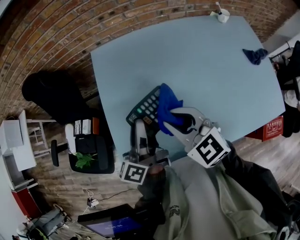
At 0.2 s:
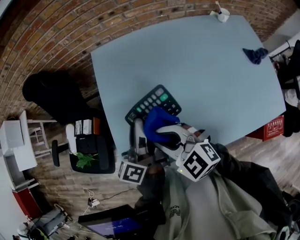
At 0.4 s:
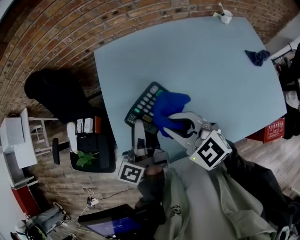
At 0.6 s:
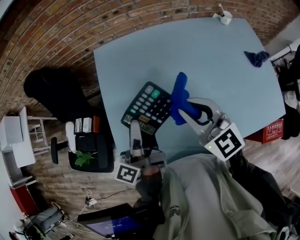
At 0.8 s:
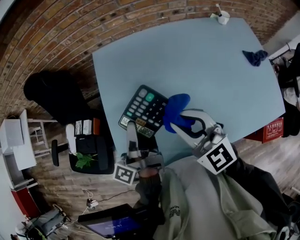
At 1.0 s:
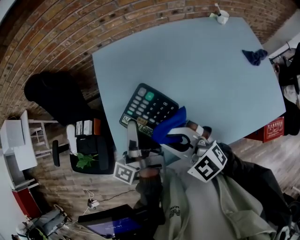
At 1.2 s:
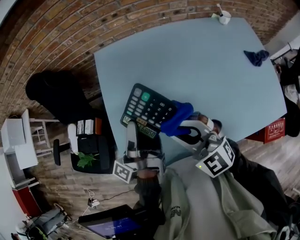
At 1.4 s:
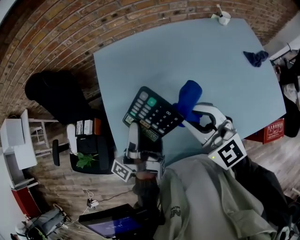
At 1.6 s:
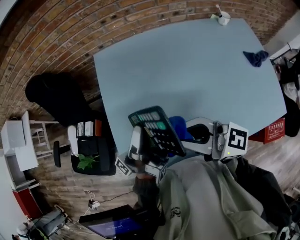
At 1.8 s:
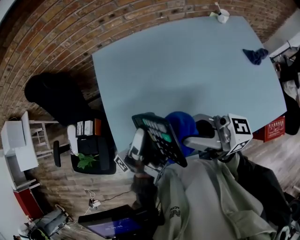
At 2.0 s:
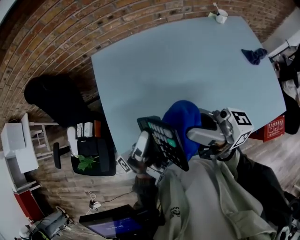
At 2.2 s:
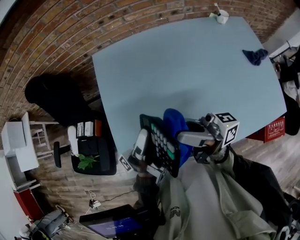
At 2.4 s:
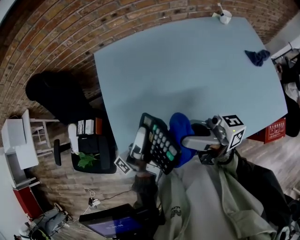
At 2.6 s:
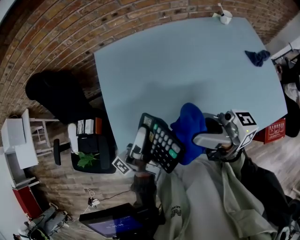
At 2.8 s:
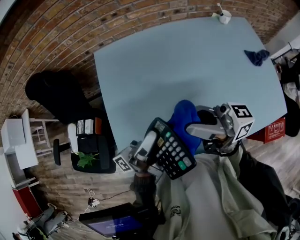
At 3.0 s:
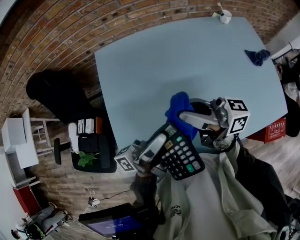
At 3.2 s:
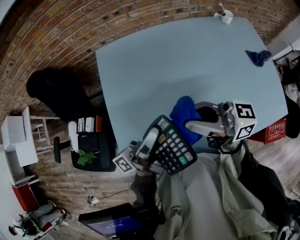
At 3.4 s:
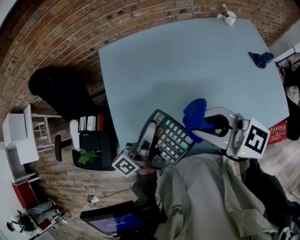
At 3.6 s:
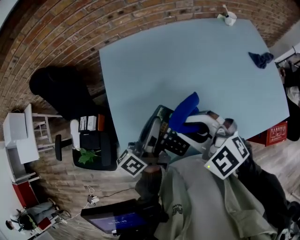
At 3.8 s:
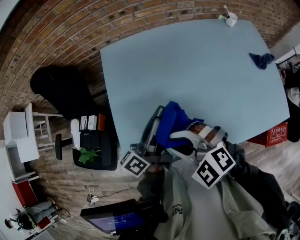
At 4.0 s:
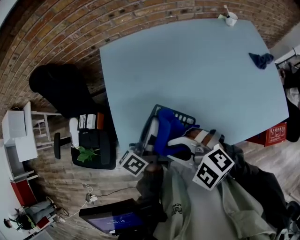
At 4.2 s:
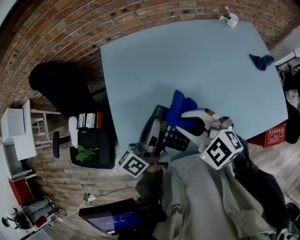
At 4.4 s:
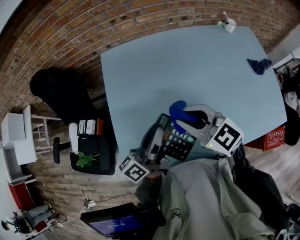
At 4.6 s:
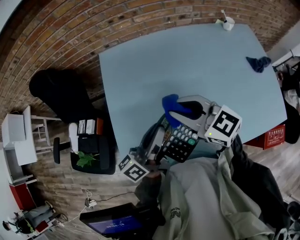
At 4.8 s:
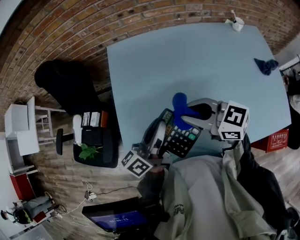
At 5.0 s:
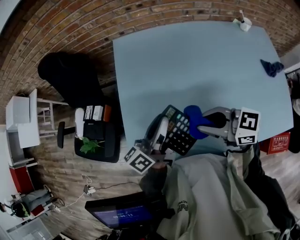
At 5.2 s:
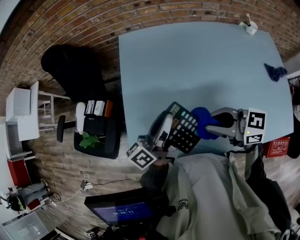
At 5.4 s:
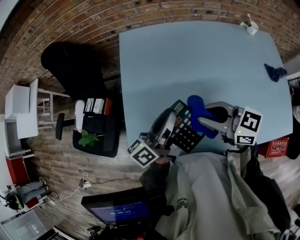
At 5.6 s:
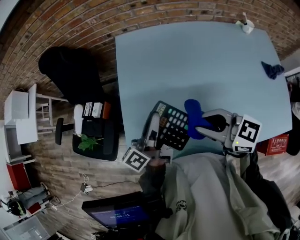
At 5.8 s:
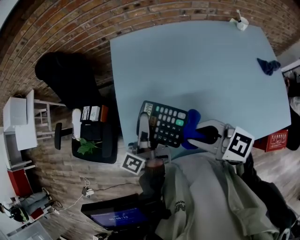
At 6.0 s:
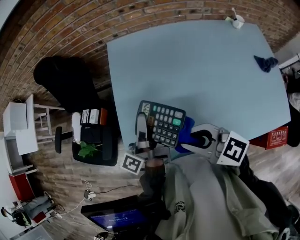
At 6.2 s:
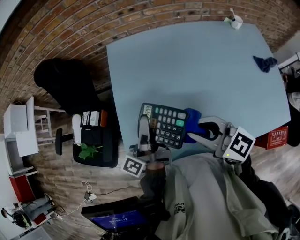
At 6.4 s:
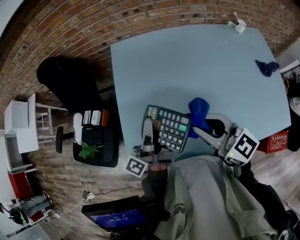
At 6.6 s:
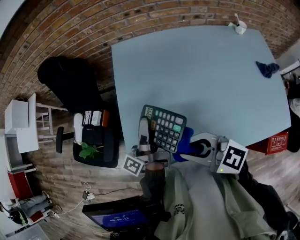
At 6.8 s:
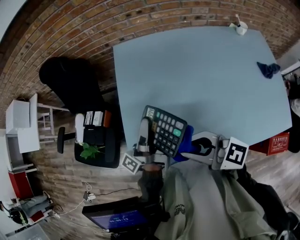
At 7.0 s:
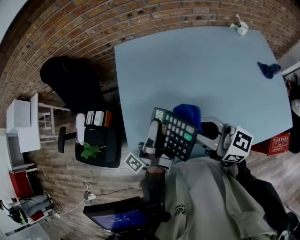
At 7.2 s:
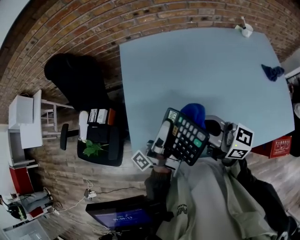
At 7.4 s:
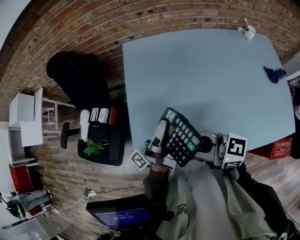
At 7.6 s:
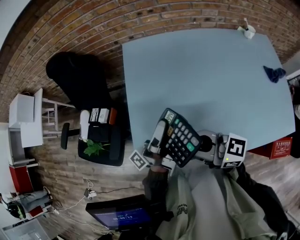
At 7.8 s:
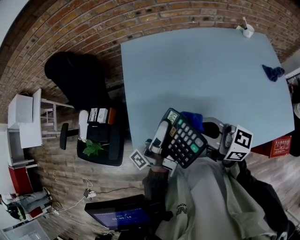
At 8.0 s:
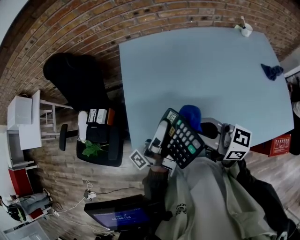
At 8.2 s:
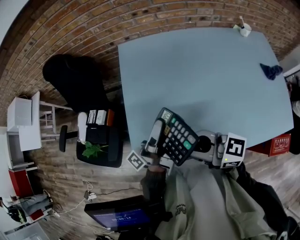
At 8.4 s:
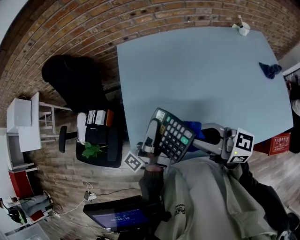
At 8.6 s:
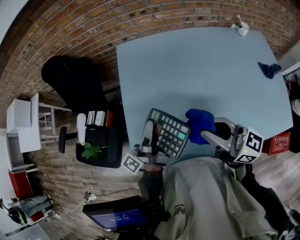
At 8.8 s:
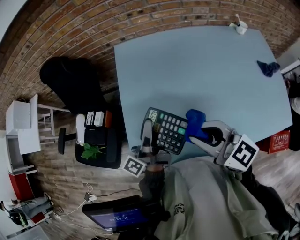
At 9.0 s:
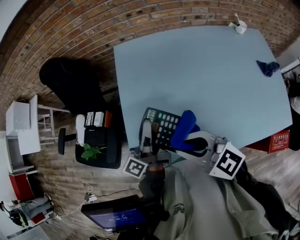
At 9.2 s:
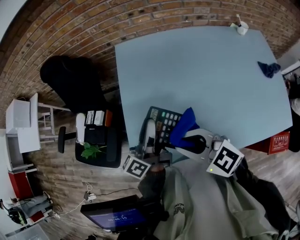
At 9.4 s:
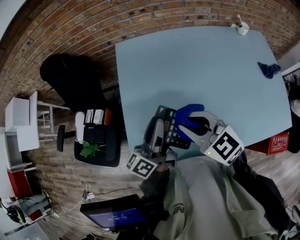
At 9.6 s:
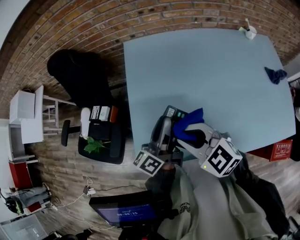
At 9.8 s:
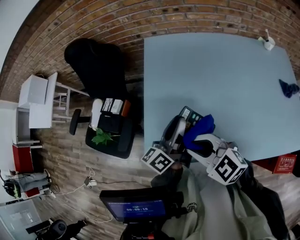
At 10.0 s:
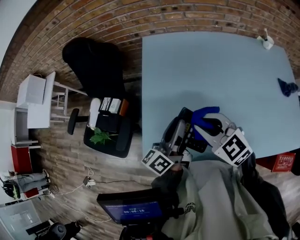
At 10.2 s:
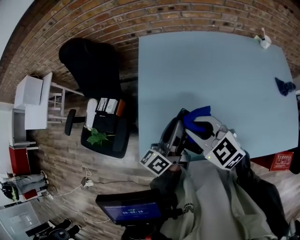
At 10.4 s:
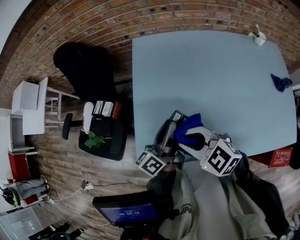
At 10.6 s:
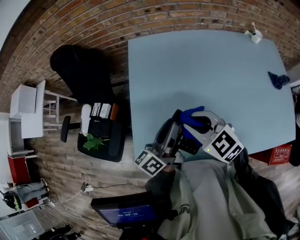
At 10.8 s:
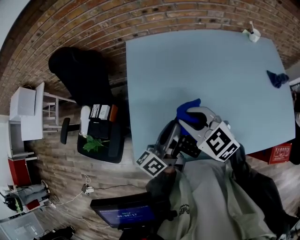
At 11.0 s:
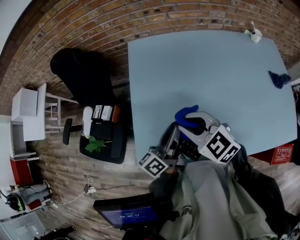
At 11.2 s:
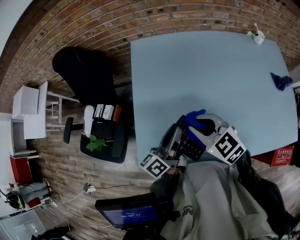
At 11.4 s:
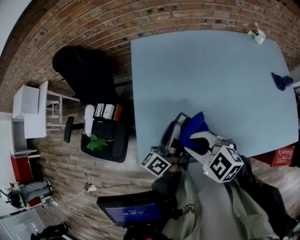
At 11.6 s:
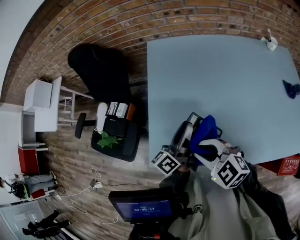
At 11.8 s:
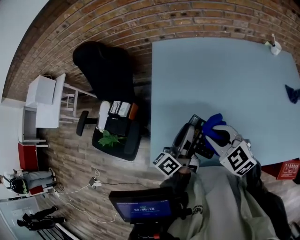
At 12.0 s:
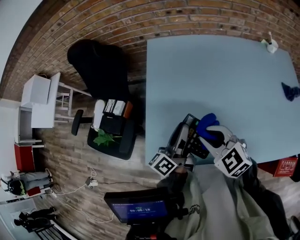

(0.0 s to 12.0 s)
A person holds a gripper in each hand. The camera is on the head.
0.0 s - 1.6 s: The left gripper heads upward, covering roughly 5 cm, and twists approximately 50 degrees counterclockwise, seen from behind. The right gripper goes left and right, some 10 cm each way, reversing 3 times, and points its fingers roughly 30 degrees further upward.
1.6 s - 3.0 s: The left gripper shifts roughly 5 cm backward, and turns by roughly 30 degrees, while the right gripper goes up and down, about 5 cm each way, reversing 3 times, and rotates some 30 degrees.
3.0 s - 4.4 s: The two grippers go roughly 5 cm downward. The right gripper goes to the left and returns, approximately 10 cm each way, and angles its fingers downward, by approximately 40 degrees, while the left gripper changes its angle by some 40 degrees.
4.4 s - 6.0 s: The right gripper heads backward and to the left, covering some 10 cm. Meanwhile the left gripper heads to the left, covering roughly 5 cm, and turns by roughly 30 degrees.
6.0 s - 7.6 s: The left gripper changes its angle by approximately 30 degrees. The right gripper swings left and right, some 10 cm each way, with 3 reversals, and swivels about 20 degrees.
7.6 s - 9.0 s: The left gripper ends up about 5 cm from where it was, and swivels approximately 40 degrees; the right gripper moves left and right over about 10 cm, changing direction 3 times, and turns by about 30 degrees.
9.0 s - 10.4 s: The right gripper goes left and right, some 5 cm each way, reversing 3 times.
10.4 s - 12.0 s: The right gripper swings forward and backward, roughly 10 cm each way, with 2 reversals.

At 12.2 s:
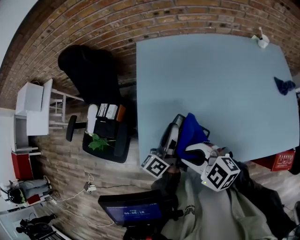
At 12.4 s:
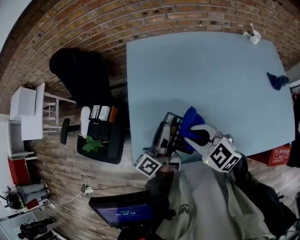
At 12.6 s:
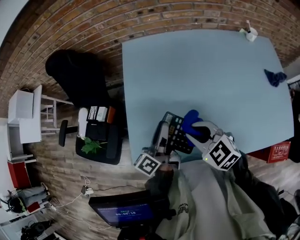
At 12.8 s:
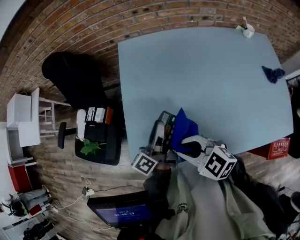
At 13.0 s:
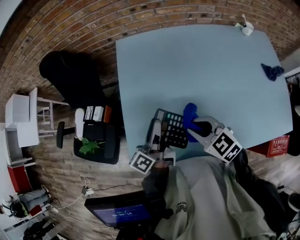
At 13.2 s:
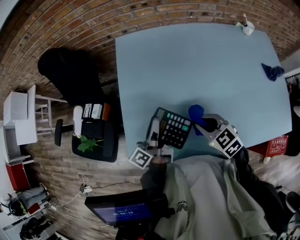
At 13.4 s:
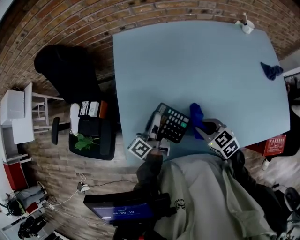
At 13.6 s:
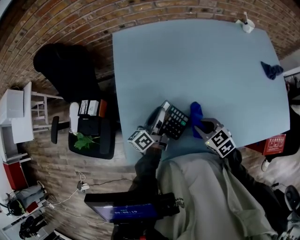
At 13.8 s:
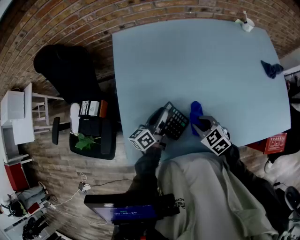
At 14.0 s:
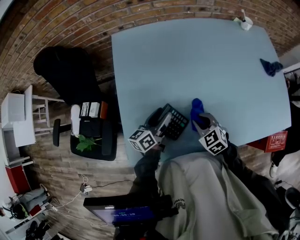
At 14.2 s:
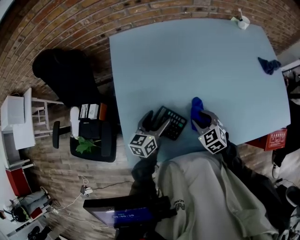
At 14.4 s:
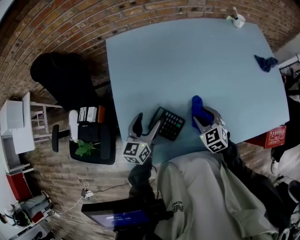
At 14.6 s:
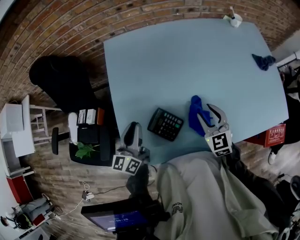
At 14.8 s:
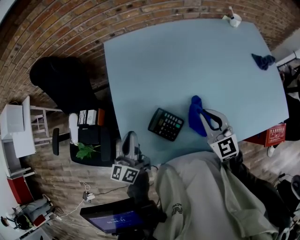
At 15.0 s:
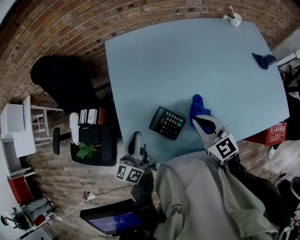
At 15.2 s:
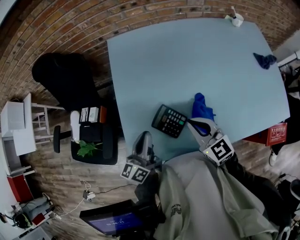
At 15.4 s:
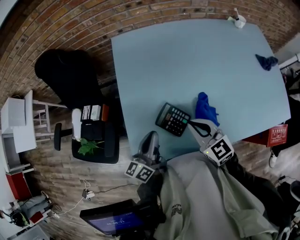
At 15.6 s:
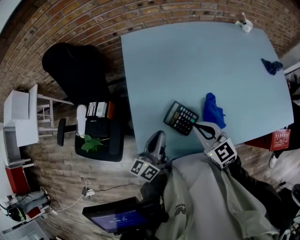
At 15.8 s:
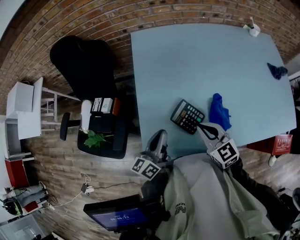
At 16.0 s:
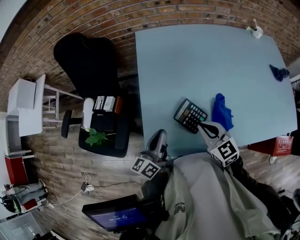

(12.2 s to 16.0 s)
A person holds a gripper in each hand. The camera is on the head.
12.2 s - 13.4 s: The right gripper moves left and right over approximately 15 cm, changing direction 2 times, and changes its angle by roughly 40 degrees. The left gripper travels downward by approximately 10 cm.
13.4 s - 14.8 s: The right gripper moves upward, approximately 10 cm, swivels about 30 degrees, and opens and closes again. The left gripper travels to the left, upward and backward by about 10 cm, swivels roughly 30 degrees, and opens, then closes once more.
14.8 s - 16.0 s: The right gripper travels to the left by about 15 cm. The left gripper goes about 5 cm backward.

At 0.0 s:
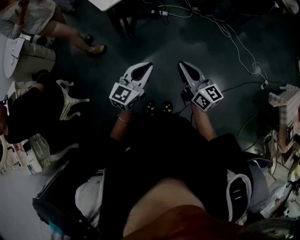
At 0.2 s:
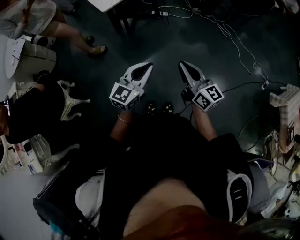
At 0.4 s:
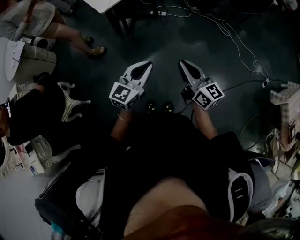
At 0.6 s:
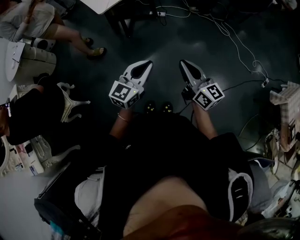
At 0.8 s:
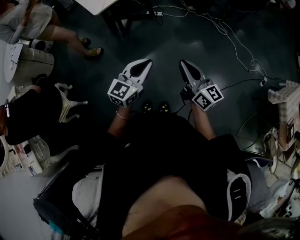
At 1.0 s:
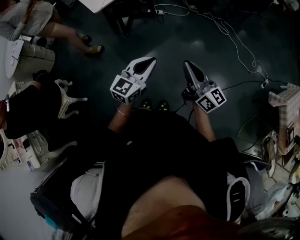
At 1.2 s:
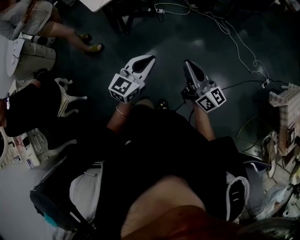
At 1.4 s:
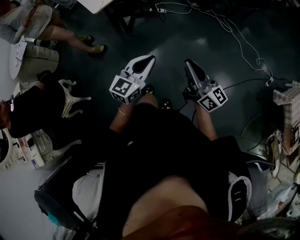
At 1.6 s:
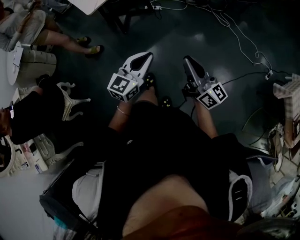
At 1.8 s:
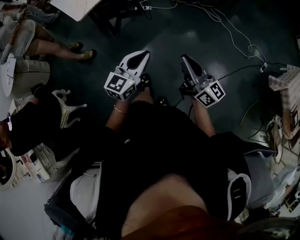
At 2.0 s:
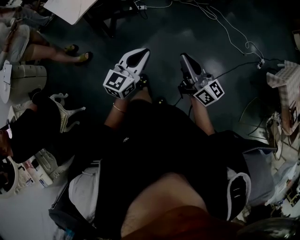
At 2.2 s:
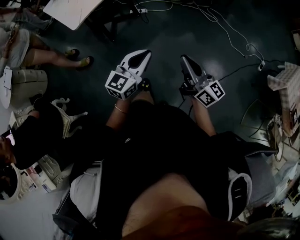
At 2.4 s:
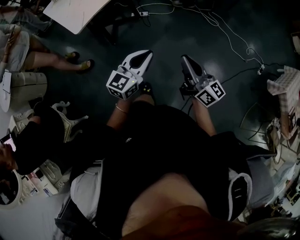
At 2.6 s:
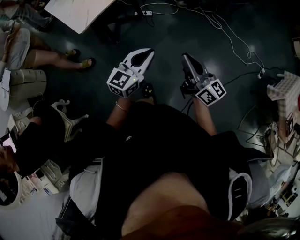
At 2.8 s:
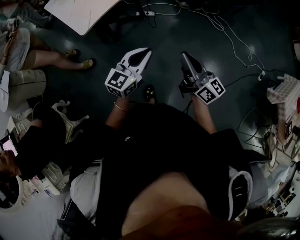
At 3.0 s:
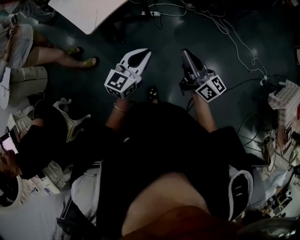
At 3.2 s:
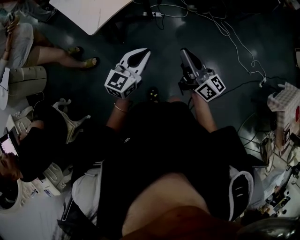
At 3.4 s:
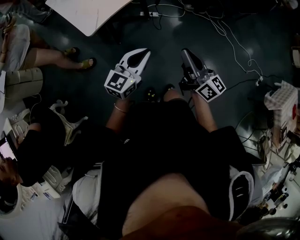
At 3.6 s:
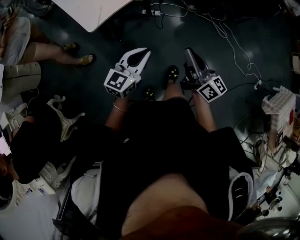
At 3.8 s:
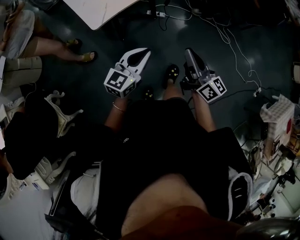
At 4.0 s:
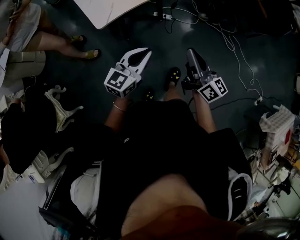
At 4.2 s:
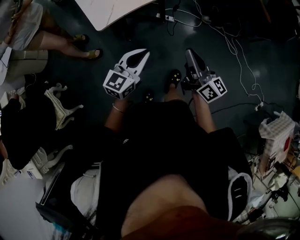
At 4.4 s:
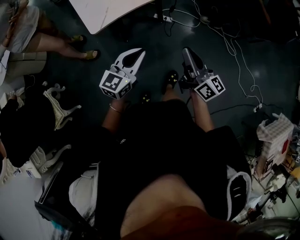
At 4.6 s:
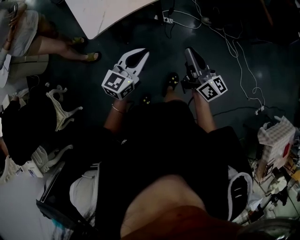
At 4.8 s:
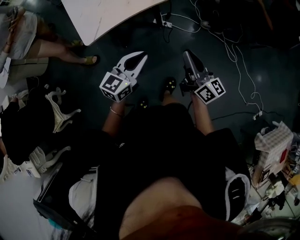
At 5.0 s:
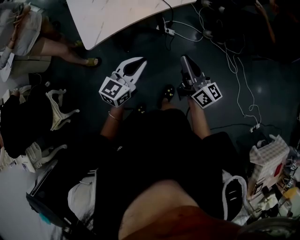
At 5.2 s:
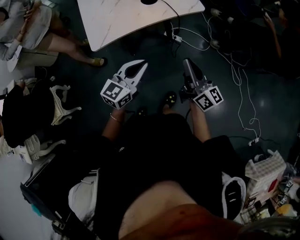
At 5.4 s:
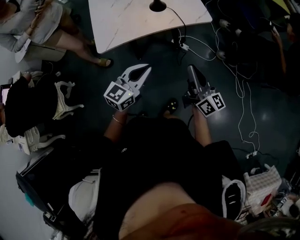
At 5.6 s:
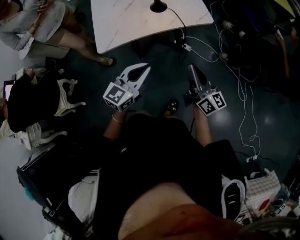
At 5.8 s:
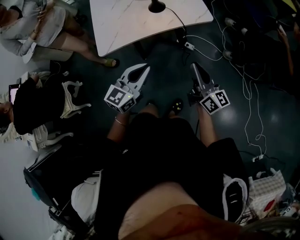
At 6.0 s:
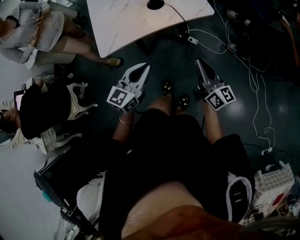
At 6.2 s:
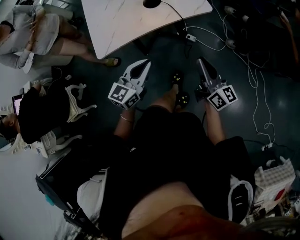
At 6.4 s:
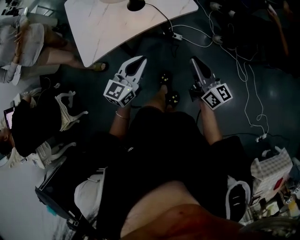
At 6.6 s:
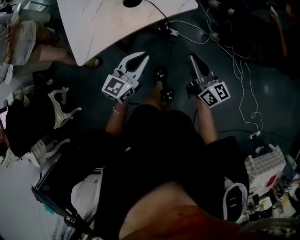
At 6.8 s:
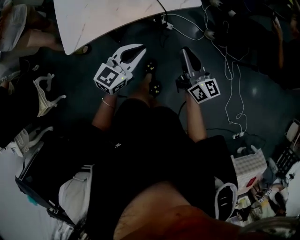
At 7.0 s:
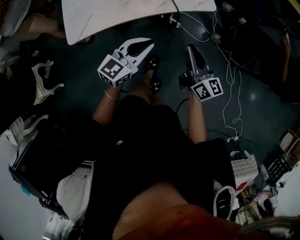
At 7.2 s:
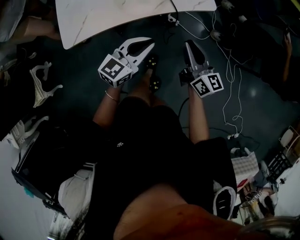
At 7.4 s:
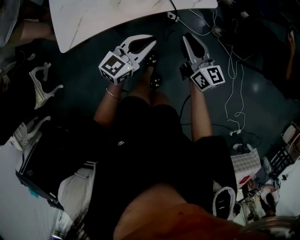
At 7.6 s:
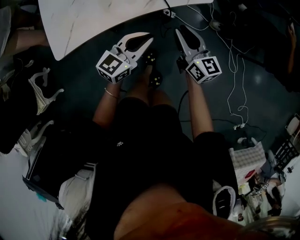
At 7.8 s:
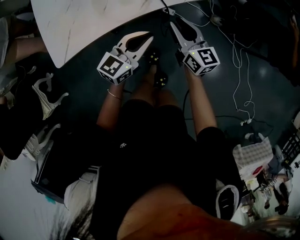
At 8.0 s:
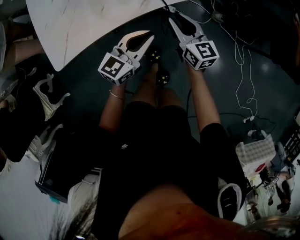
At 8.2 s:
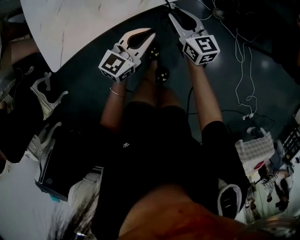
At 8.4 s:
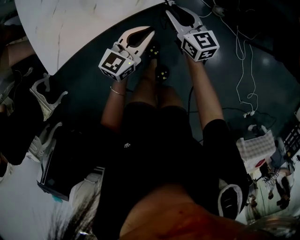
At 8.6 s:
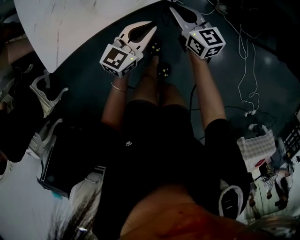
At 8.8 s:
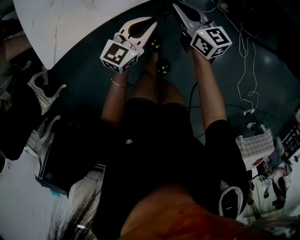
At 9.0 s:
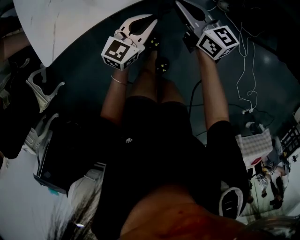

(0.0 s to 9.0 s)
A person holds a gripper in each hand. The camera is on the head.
0.0 s - 1.6 s: The two grippers go about 10 cm to the right.
1.6 s - 3.0 s: Both grippers move forward and to the left, about 25 cm.
3.0 s - 4.4 s: Both grippers move forward, some 10 cm.
4.4 s - 6.0 s: Both grippers travel together forward and to the right, some 15 cm.
6.0 s - 7.6 s: The left gripper goes some 20 cm forward, downward and to the right, while the right gripper travels forward and downward by some 20 cm.
7.6 s - 9.0 s: The right gripper travels forward by some 5 cm; the left gripper travels downward by some 10 cm.
